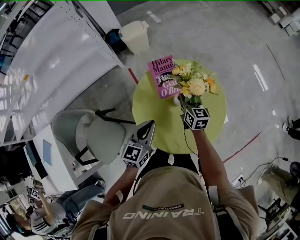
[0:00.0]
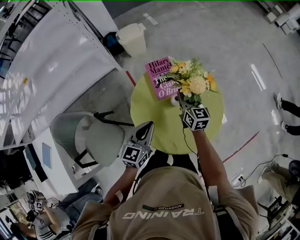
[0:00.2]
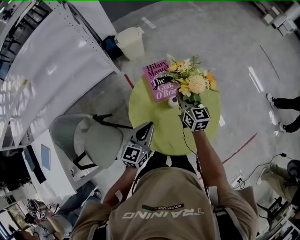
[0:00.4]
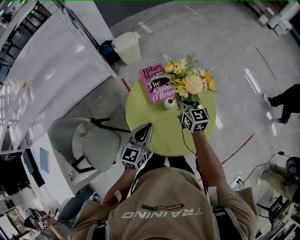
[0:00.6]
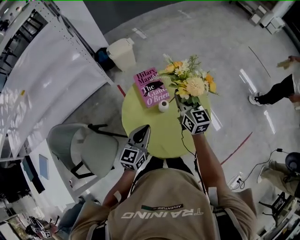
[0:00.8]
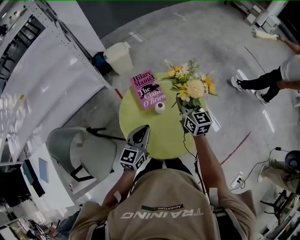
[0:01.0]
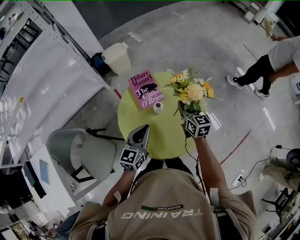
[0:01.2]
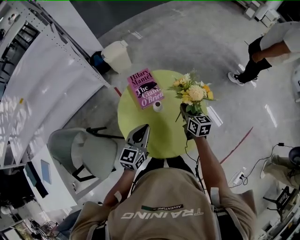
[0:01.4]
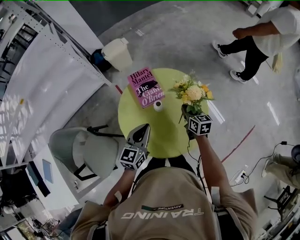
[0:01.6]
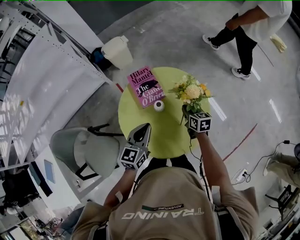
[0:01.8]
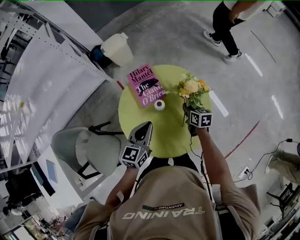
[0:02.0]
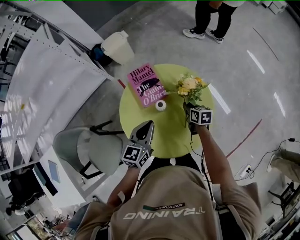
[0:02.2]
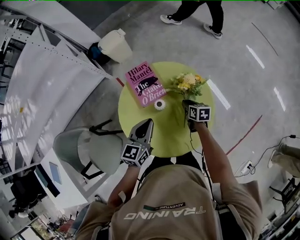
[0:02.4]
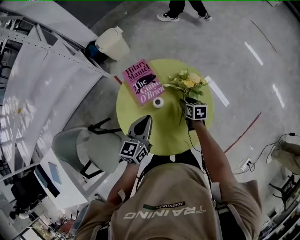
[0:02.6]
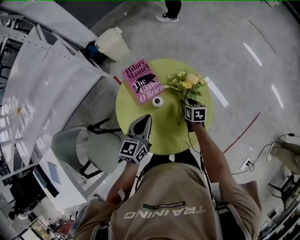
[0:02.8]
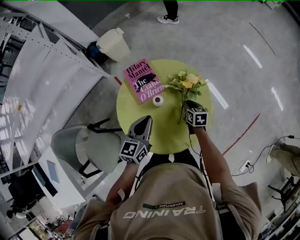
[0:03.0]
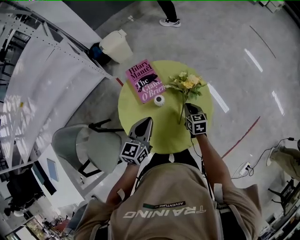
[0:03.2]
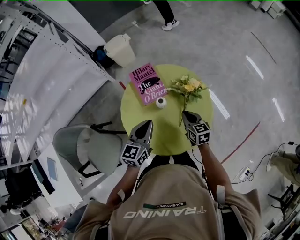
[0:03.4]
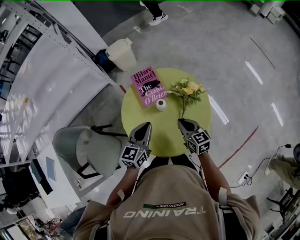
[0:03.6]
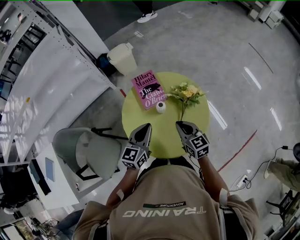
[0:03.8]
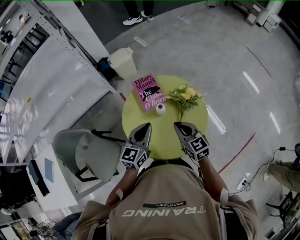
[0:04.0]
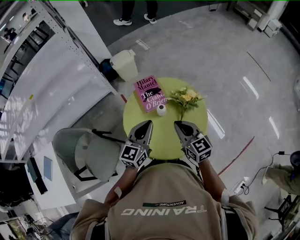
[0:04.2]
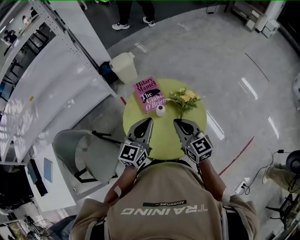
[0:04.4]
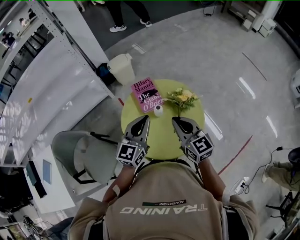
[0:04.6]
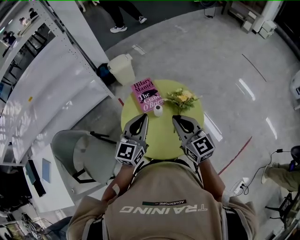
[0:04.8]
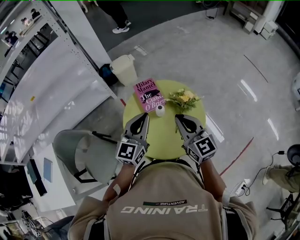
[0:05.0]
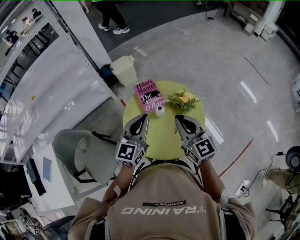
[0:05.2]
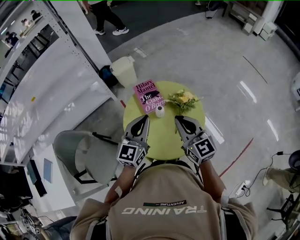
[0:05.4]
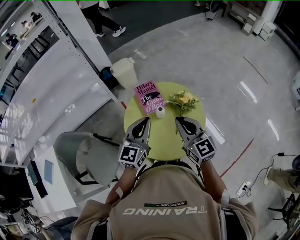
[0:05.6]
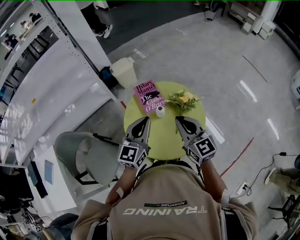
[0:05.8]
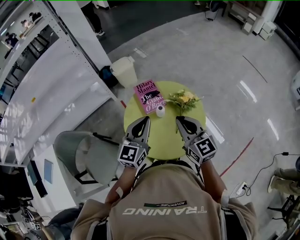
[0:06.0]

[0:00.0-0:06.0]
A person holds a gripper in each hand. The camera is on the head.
0.0 to 1.6 s: The left gripper moves to the right, about 10 cm; the right gripper travels to the right by some 15 cm, and reaches approximately 15 cm upward, then returns.
1.6 to 3.0 s: The right gripper travels downward by roughly 10 cm, and opens, then closes again.
3.0 to 4.4 s: The right gripper moves upward, some 30 cm, and points its fingers roughly 30 degrees further upward; the left gripper heads upward, covering some 15 cm.
4.4 to 6.0 s: The right gripper travels upward by about 5 cm.

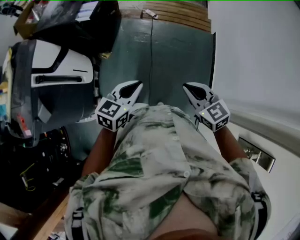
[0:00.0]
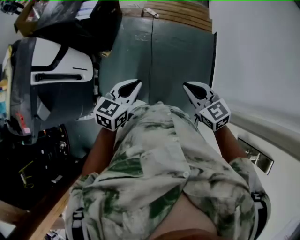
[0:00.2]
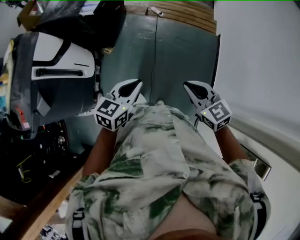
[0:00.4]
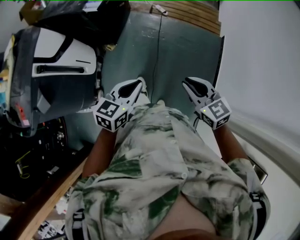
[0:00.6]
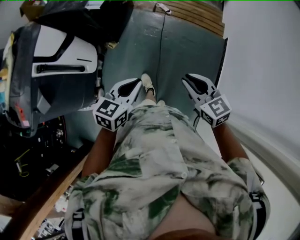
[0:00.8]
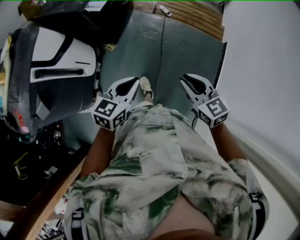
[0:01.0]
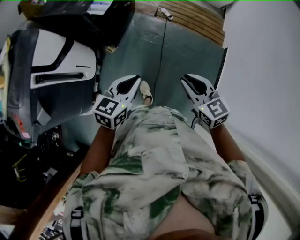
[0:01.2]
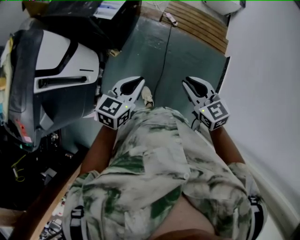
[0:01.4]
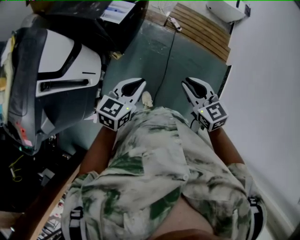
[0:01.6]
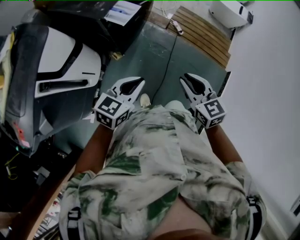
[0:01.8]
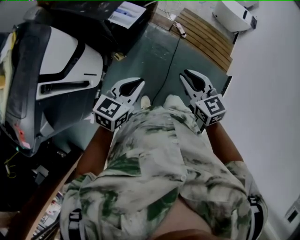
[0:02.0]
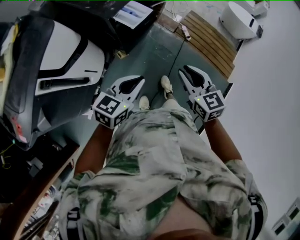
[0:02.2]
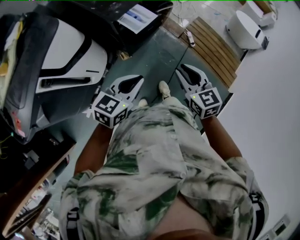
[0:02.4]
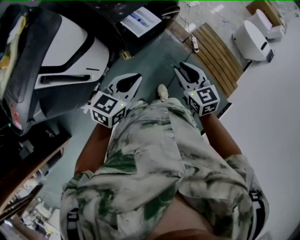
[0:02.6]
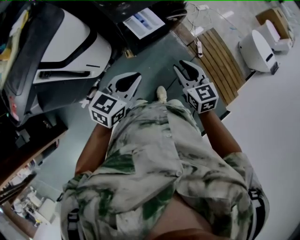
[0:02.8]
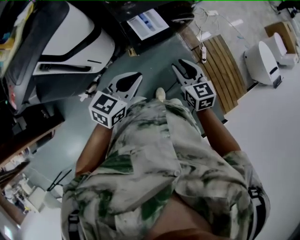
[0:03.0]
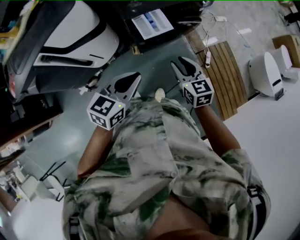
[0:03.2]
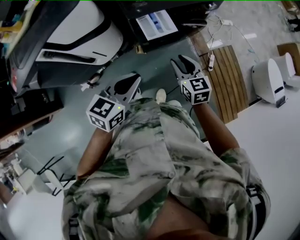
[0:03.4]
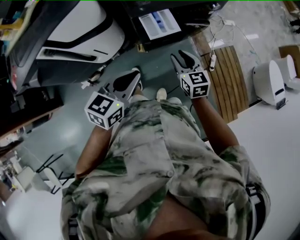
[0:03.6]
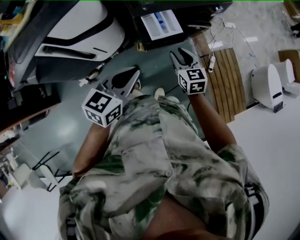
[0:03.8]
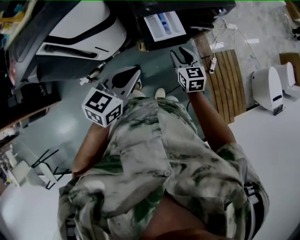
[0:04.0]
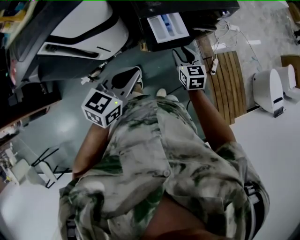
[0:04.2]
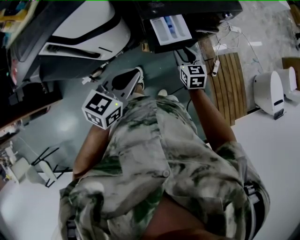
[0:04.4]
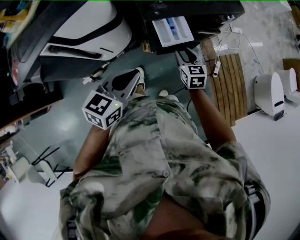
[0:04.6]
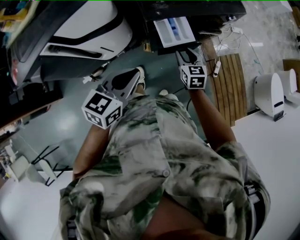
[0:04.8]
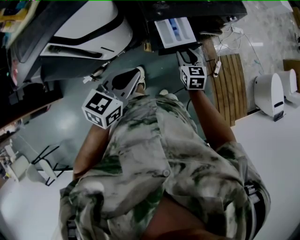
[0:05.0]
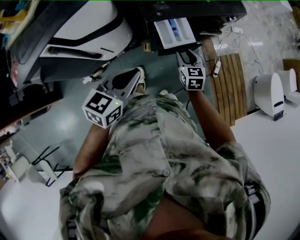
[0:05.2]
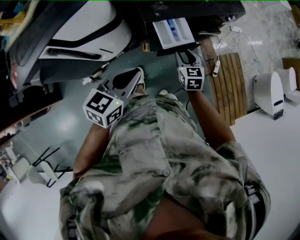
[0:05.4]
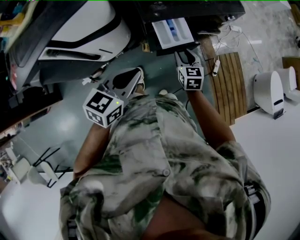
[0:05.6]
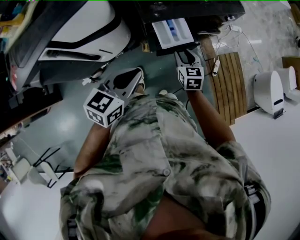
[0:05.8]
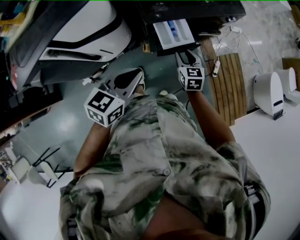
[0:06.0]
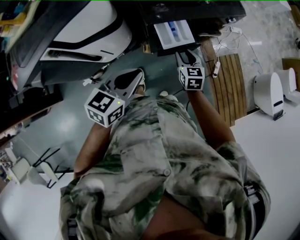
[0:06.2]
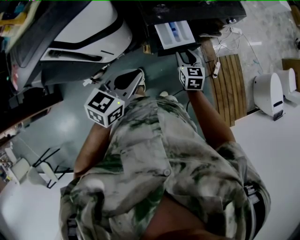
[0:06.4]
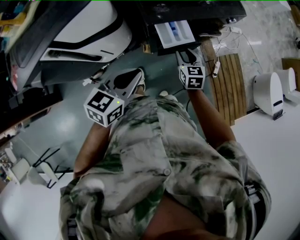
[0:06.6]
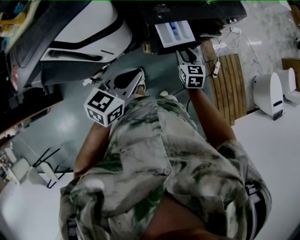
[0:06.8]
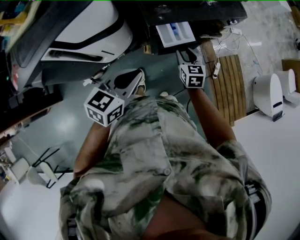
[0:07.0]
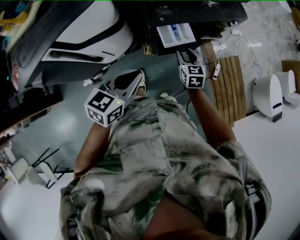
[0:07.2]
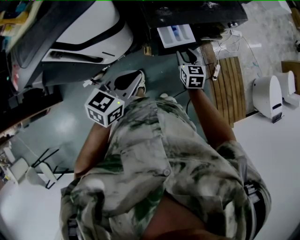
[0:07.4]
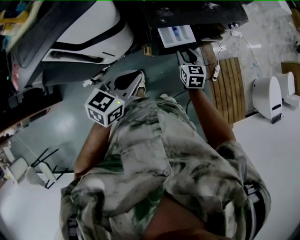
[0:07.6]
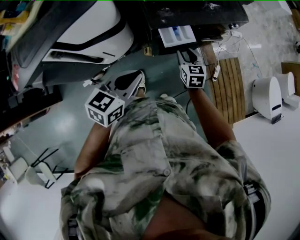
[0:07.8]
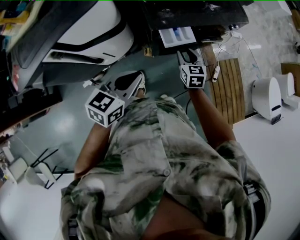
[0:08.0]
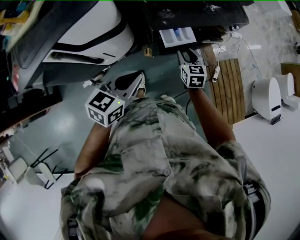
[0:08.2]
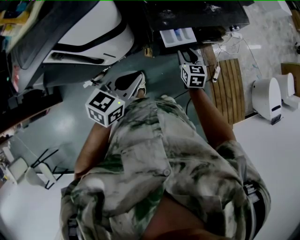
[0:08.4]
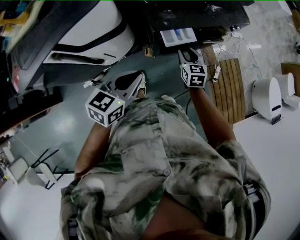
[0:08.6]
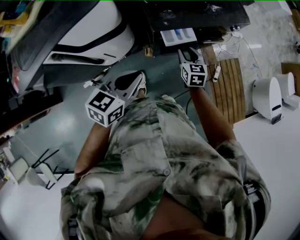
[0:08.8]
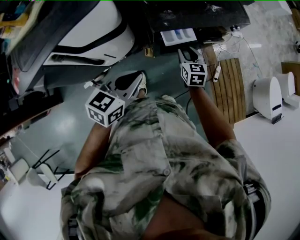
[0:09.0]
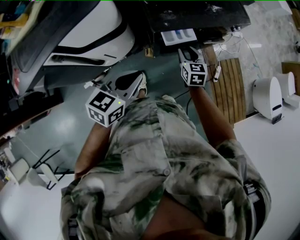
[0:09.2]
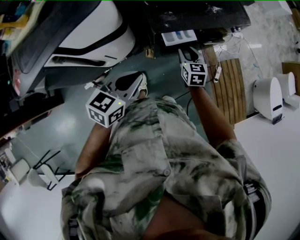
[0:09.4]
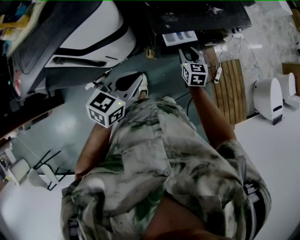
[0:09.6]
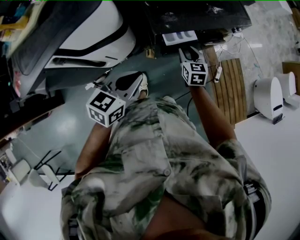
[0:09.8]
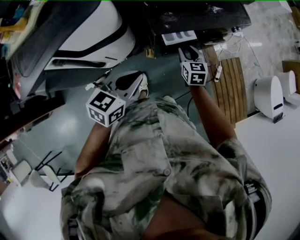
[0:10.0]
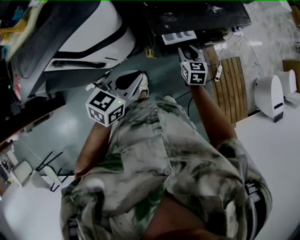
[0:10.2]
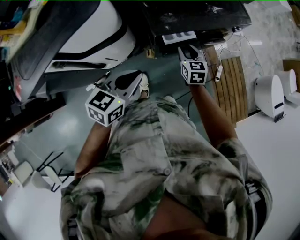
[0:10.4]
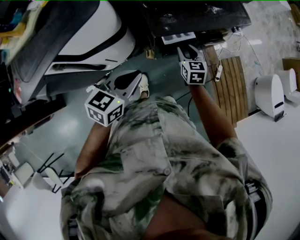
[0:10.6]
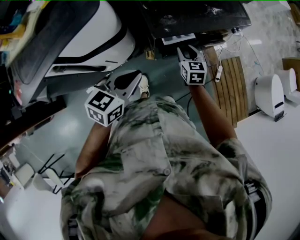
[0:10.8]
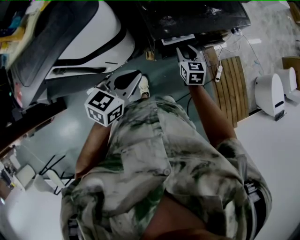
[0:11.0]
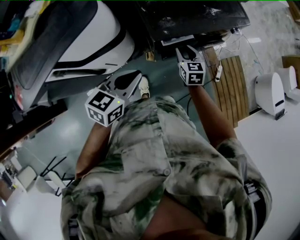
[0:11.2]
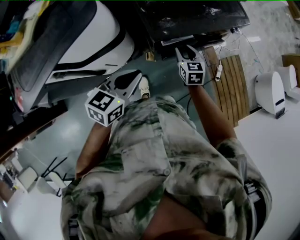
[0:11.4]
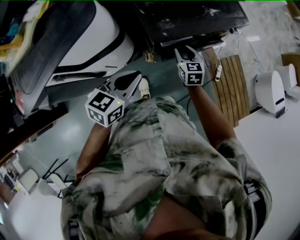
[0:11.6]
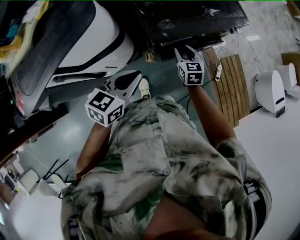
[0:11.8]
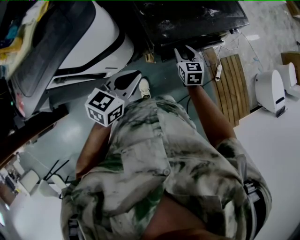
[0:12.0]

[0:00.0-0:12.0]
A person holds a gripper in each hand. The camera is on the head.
0.0 to 1.6 s: The two grippers go roughly 30 cm forward and to the left.
1.6 to 3.0 s: The left gripper ends up about 20 cm from where it was, and turns by some 30 degrees. The right gripper moves roughly 35 cm, and turns by roughly 30 degrees.
3.0 to 4.4 s: The left gripper travels to the left and forward by roughly 10 cm, while the right gripper goes some 20 cm forward and downward.
4.4 to 6.0 s: The grippers stay close to where they were, moving slightly.
6.0 to 7.6 s: There are only small adjustments of the grippers.
7.6 to 10.4 s: There are only small adjustments of the grippers.
10.4 to 12.0 s: The grippers move only a little.

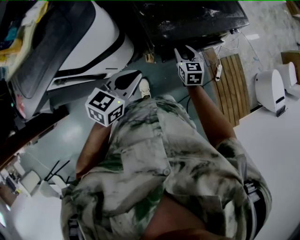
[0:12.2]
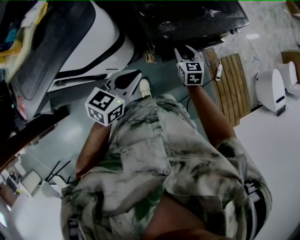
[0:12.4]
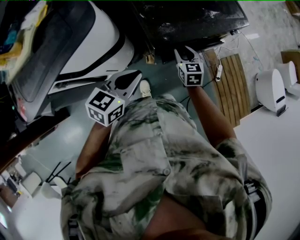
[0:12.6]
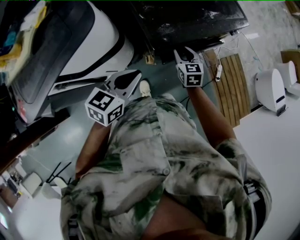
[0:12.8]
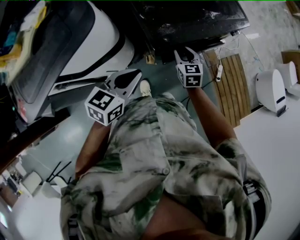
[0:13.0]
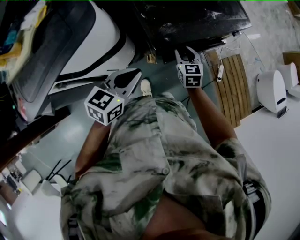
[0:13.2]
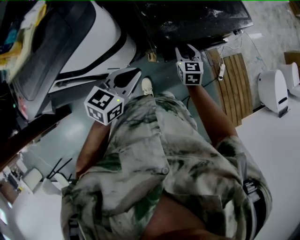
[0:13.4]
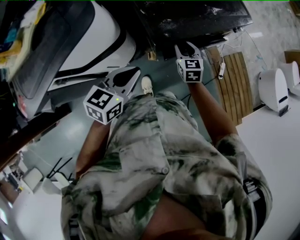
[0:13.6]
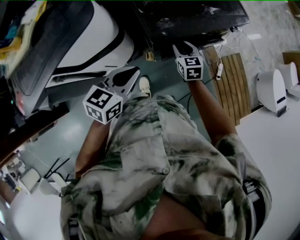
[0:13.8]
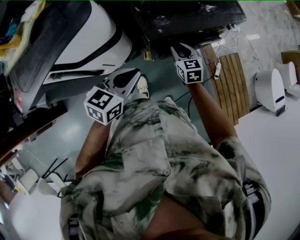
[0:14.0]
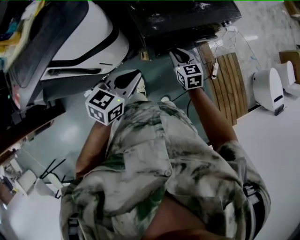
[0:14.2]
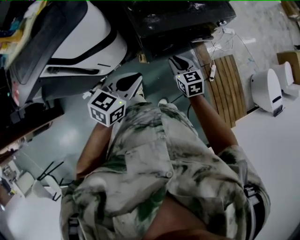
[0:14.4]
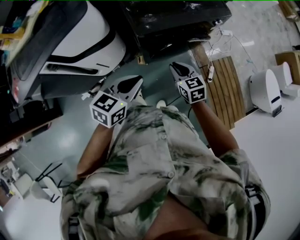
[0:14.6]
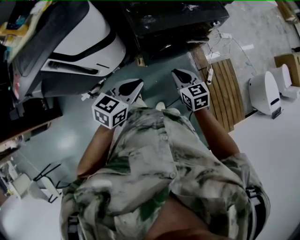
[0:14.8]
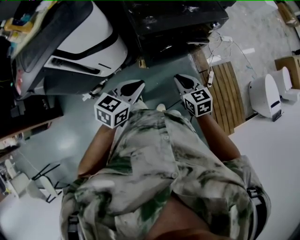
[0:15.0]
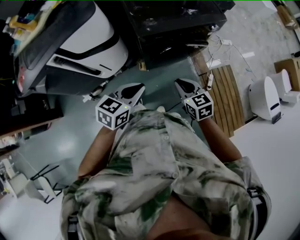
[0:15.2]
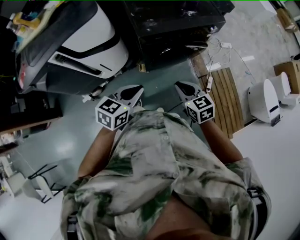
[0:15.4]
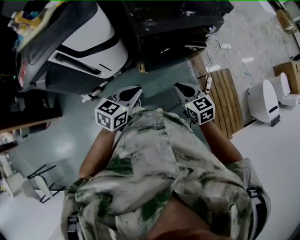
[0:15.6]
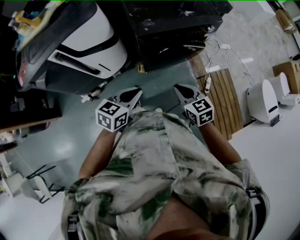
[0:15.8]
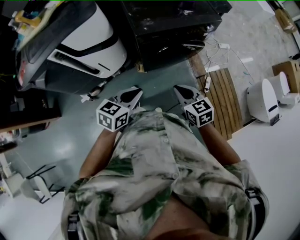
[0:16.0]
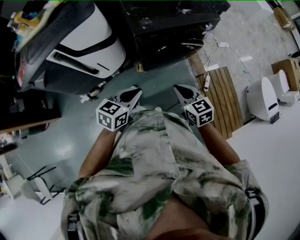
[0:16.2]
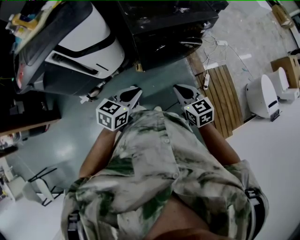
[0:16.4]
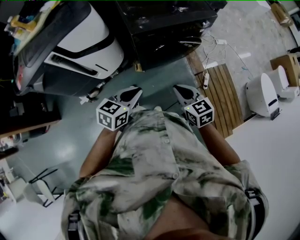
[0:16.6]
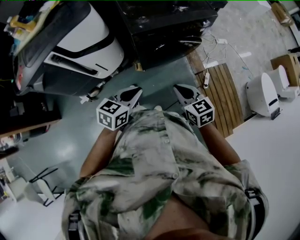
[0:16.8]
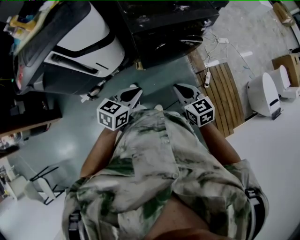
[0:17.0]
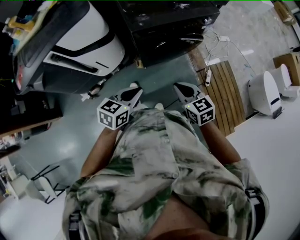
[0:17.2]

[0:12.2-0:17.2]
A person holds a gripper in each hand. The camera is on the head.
12.2 to 13.8 s: The grippers make only small movements.
13.8 to 15.6 s: The left gripper moves backward and to the right, roughly 25 cm. Meanwhile the right gripper heads backward, covering about 30 cm, and closes its fingers.
15.6 to 17.2 s: The grippers make only small movements.

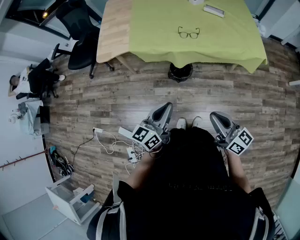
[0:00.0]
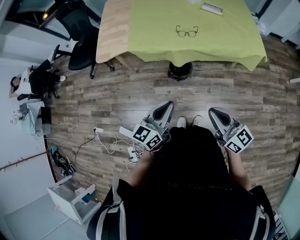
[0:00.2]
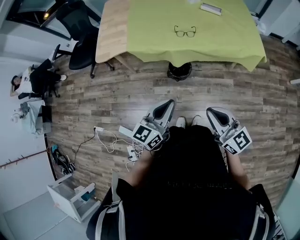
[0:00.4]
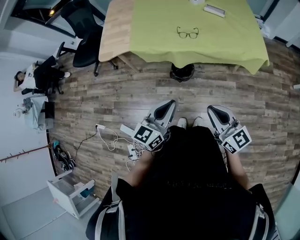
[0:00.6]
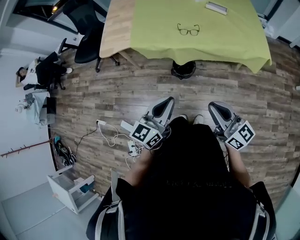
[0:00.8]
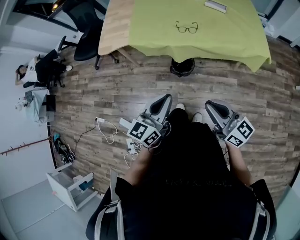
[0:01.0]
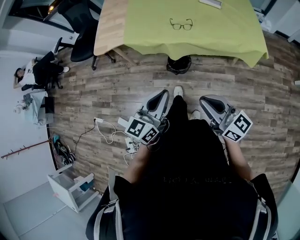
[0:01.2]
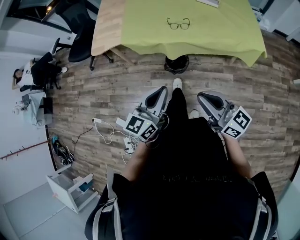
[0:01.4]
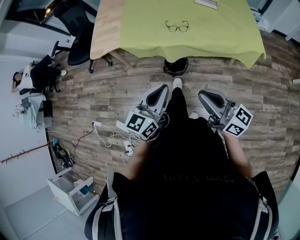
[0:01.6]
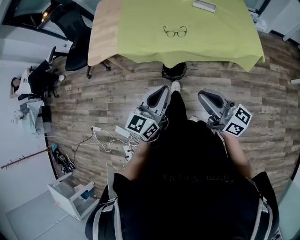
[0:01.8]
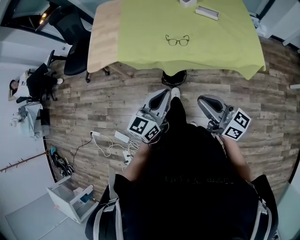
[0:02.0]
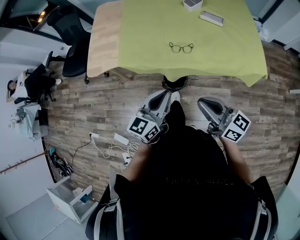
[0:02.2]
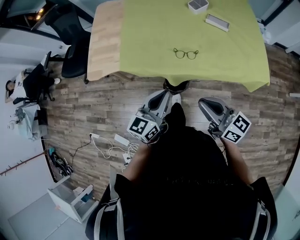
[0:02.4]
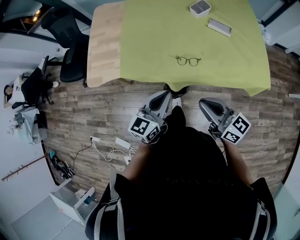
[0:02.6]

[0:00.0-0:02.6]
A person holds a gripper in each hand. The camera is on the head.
0.0 to 1.2 s: The left gripper shifts approximately 10 cm to the right; the right gripper moves approximately 5 cm.
1.2 to 2.6 s: Both grippers travel together forward, some 25 cm.
